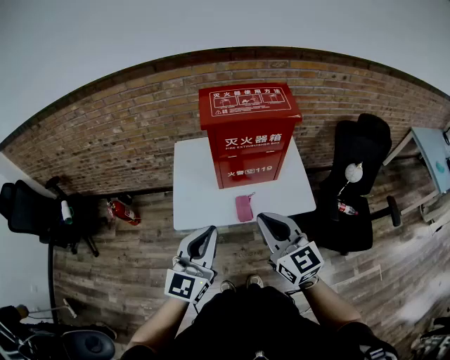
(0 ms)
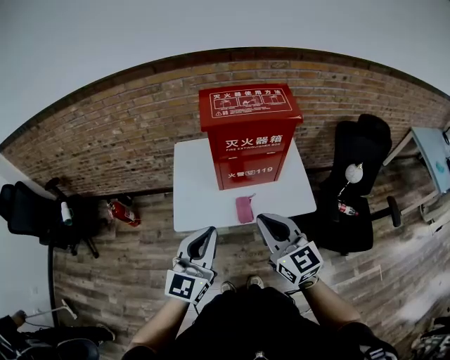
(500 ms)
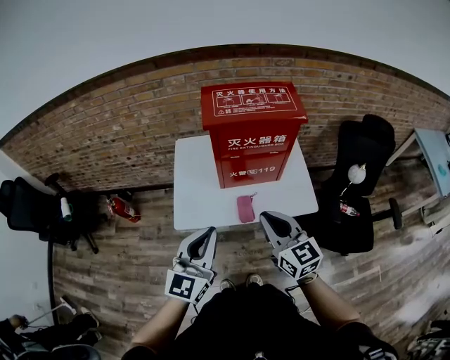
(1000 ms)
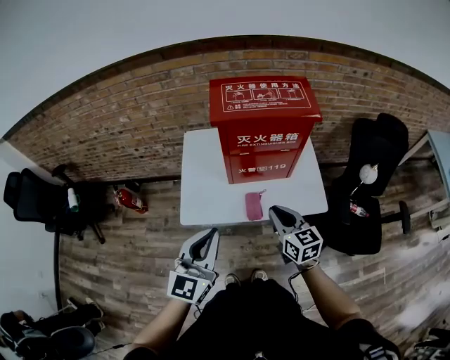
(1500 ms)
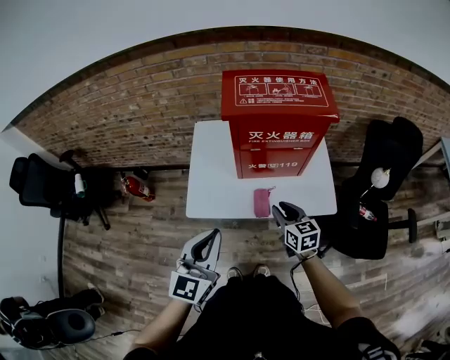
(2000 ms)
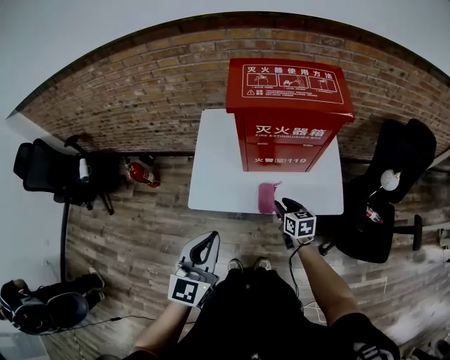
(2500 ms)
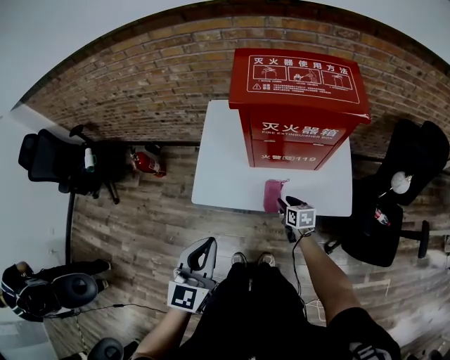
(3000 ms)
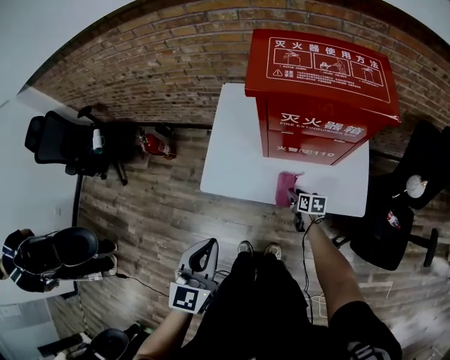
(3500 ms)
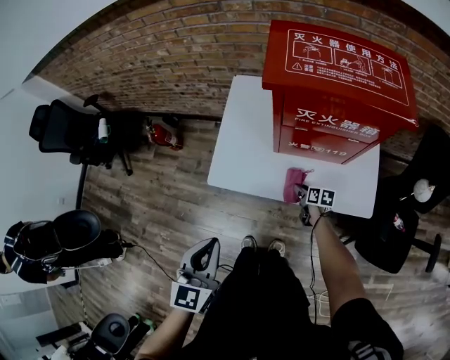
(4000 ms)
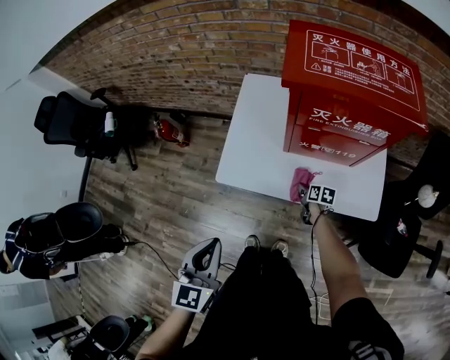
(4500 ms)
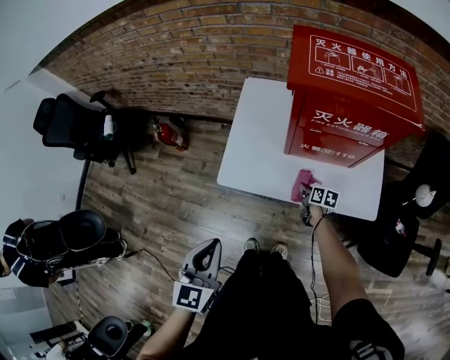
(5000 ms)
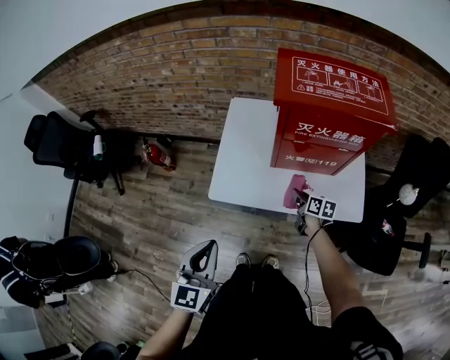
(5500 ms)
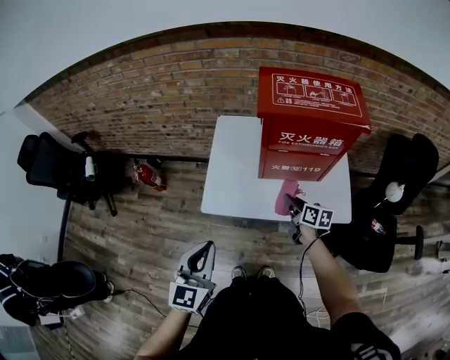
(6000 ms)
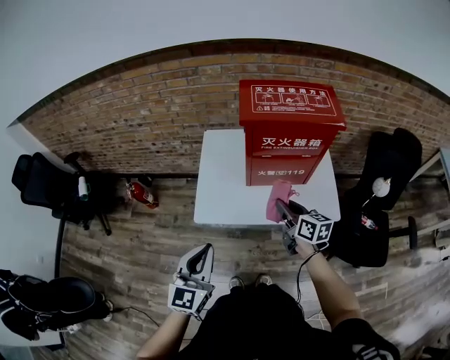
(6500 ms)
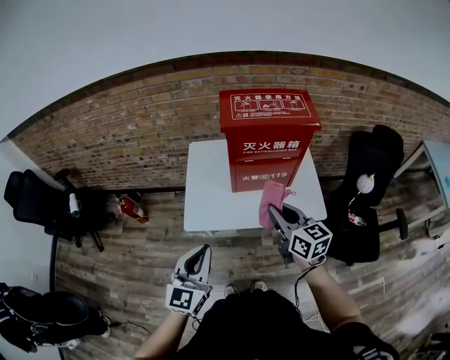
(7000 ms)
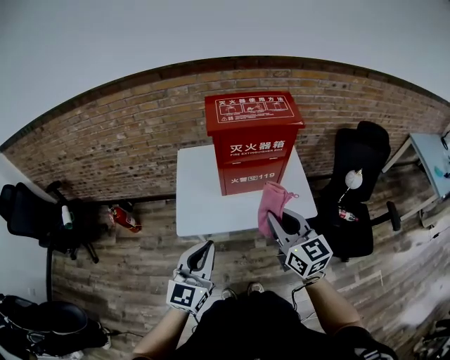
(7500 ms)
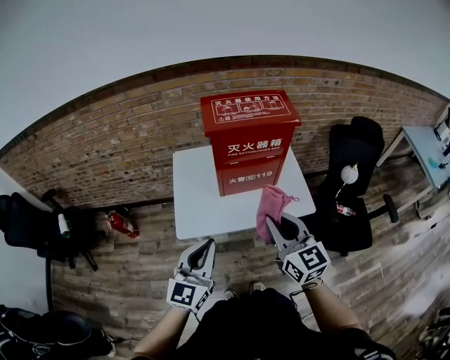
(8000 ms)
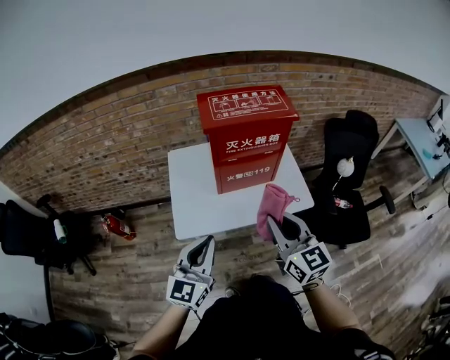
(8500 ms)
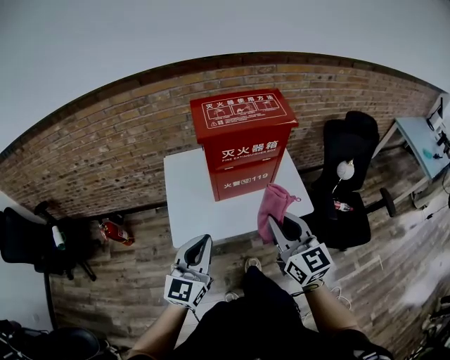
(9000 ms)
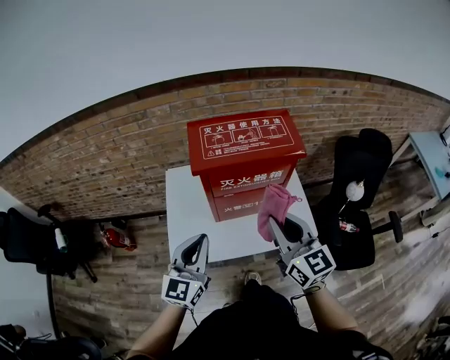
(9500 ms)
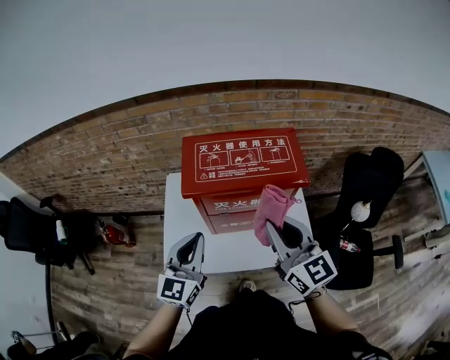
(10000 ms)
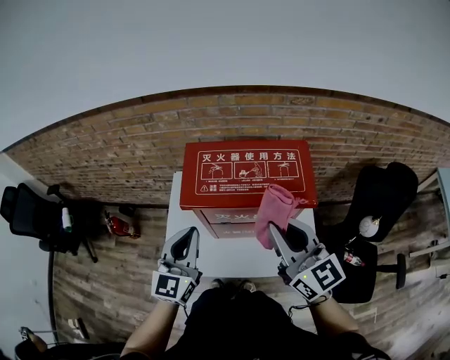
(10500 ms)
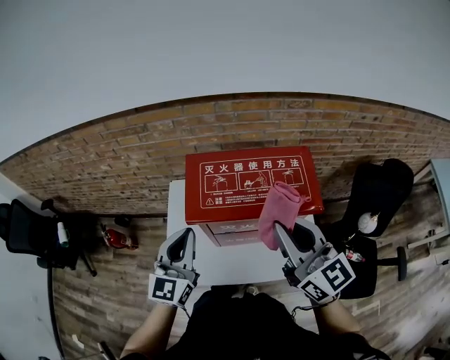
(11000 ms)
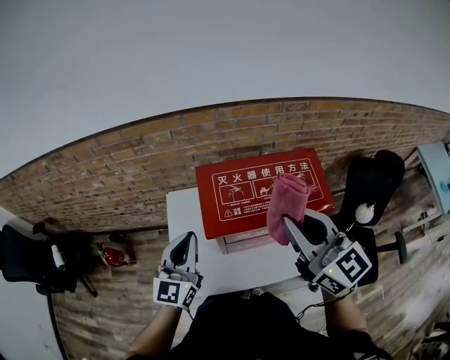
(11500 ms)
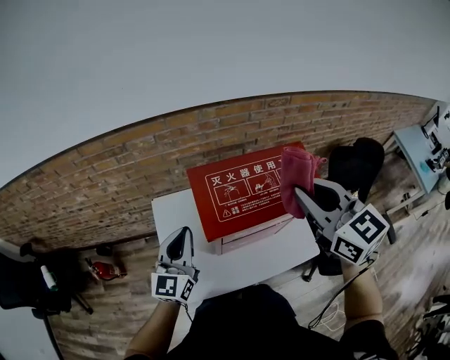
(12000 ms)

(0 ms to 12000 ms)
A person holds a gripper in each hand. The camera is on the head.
0 ms - 2000 ms: The right gripper heads downward and forward, covering about 25 cm, and changes its angle by approximately 30 degrees. Meanwhile the left gripper ends up approximately 5 cm from where it was.
2000 ms - 4000 ms: The left gripper moves downward and to the left, some 10 cm, and changes its angle by roughly 20 degrees, while the right gripper shifts some 30 cm downward, and rotates approximately 40 degrees.
4000 ms - 6000 ms: The left gripper ends up approximately 5 cm from where it was. The right gripper is displaced upward by roughly 20 cm, turns by some 20 degrees, and closes.
6000 ms - 8000 ms: The right gripper travels upward and backward by roughly 35 cm, and changes its angle by about 50 degrees, while the left gripper shifts roughly 10 cm to the right and upward, and turns by about 20 degrees.
8000 ms - 10000 ms: Both grippers travel together forward, approximately 25 cm.
10000 ms - 12000 ms: The left gripper travels forward and to the left by approximately 20 cm; the right gripper travels forward and upward by approximately 15 cm.

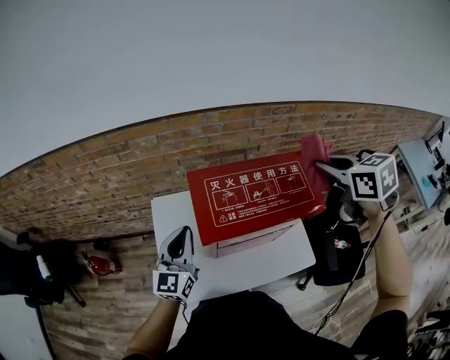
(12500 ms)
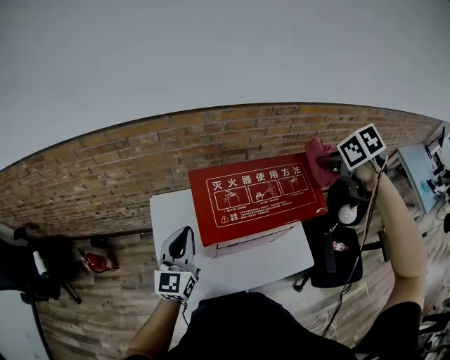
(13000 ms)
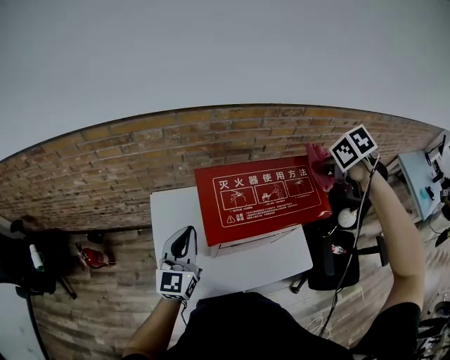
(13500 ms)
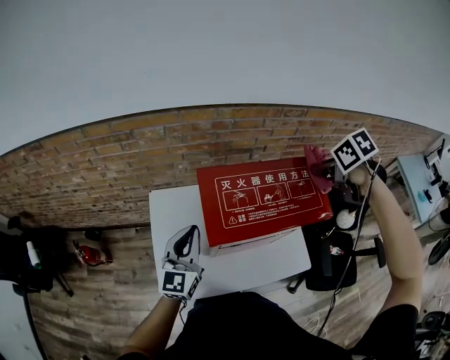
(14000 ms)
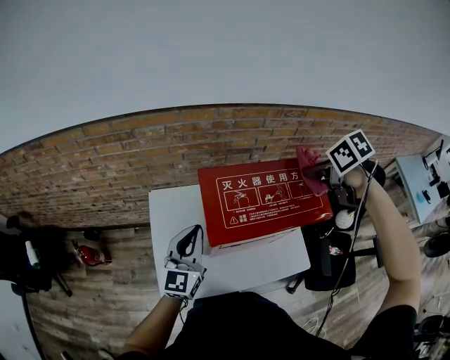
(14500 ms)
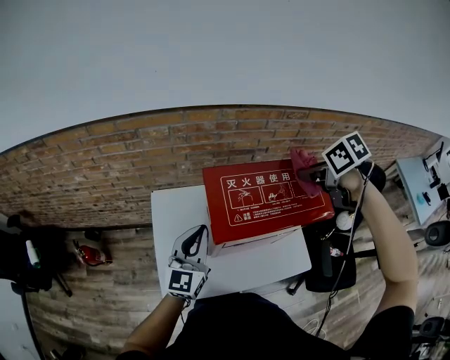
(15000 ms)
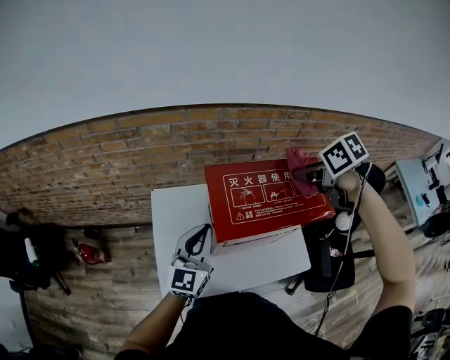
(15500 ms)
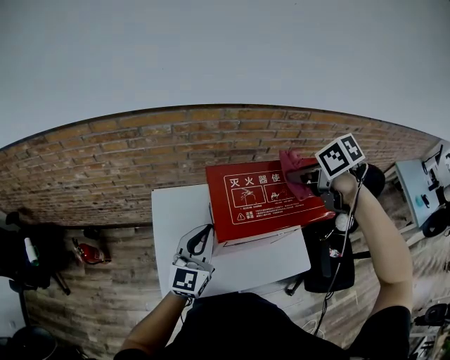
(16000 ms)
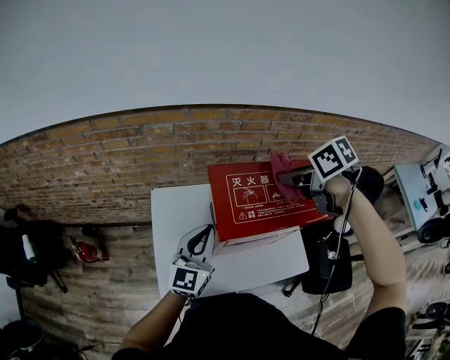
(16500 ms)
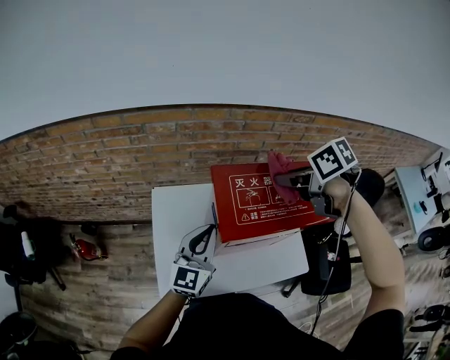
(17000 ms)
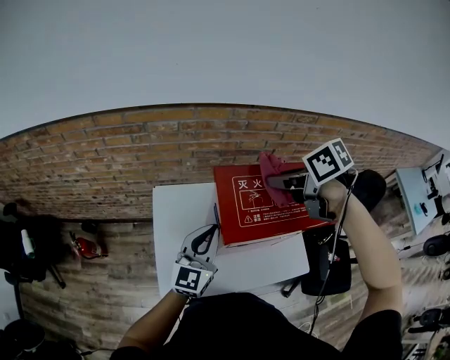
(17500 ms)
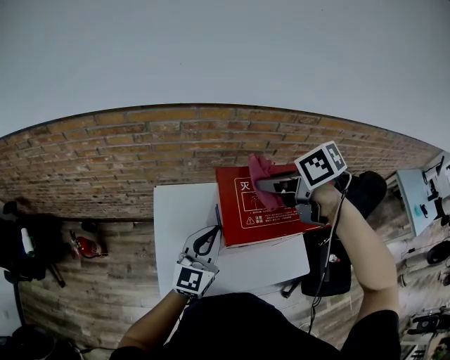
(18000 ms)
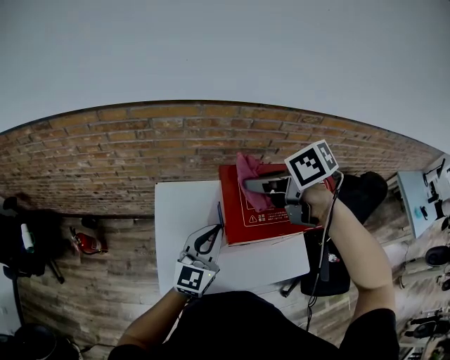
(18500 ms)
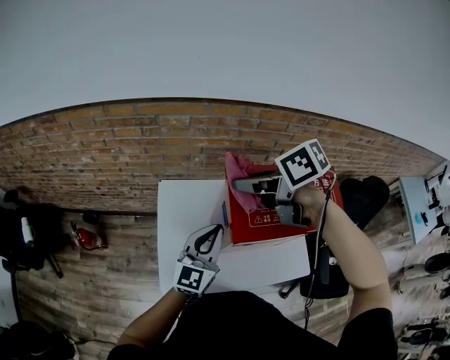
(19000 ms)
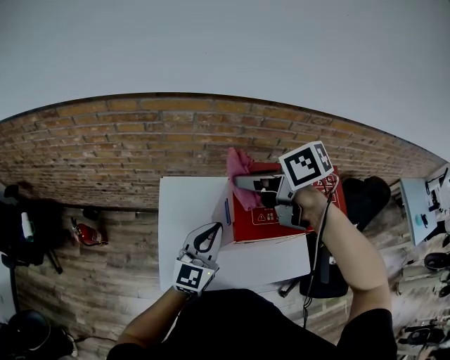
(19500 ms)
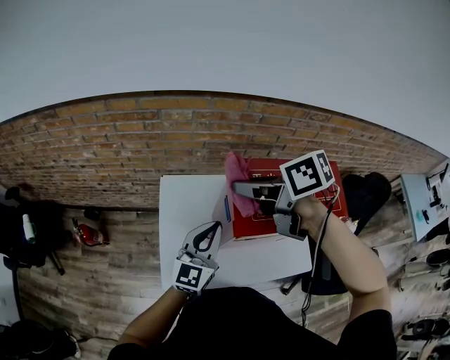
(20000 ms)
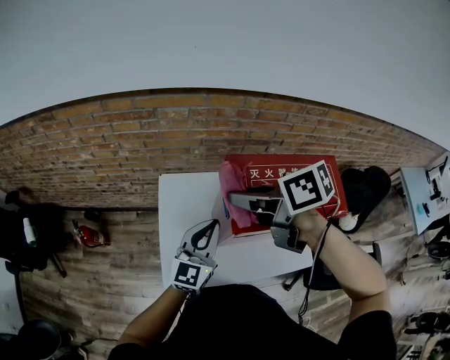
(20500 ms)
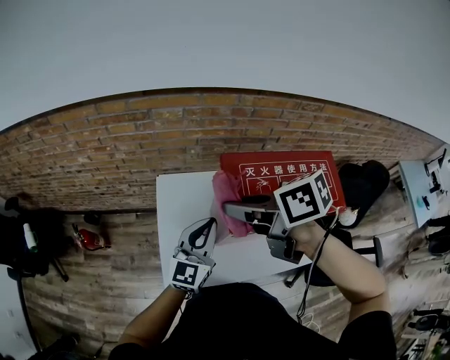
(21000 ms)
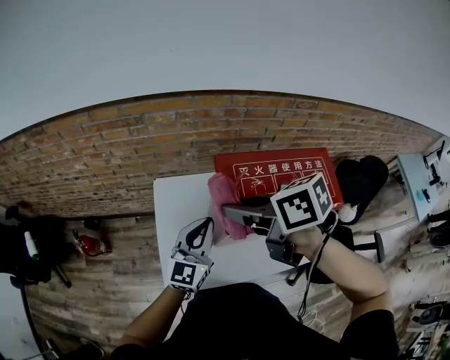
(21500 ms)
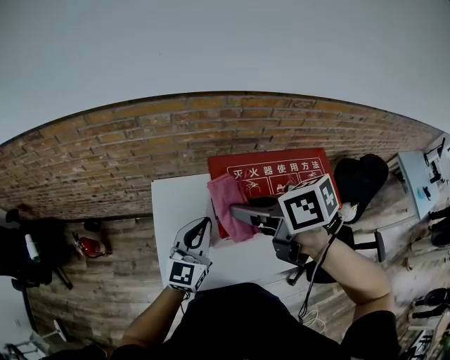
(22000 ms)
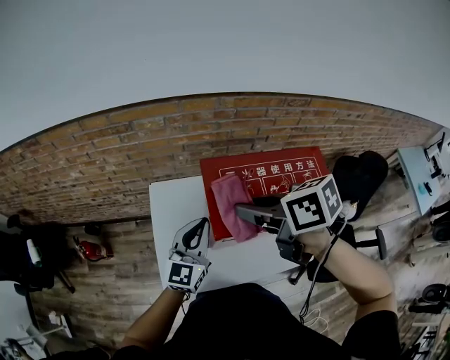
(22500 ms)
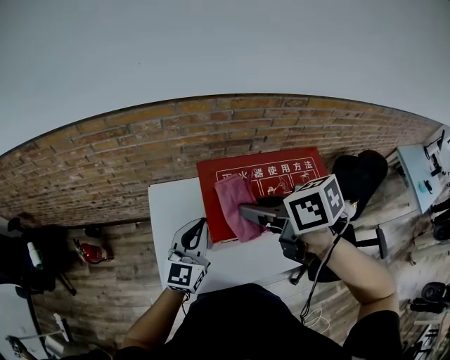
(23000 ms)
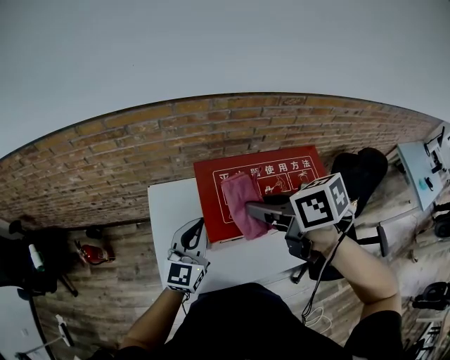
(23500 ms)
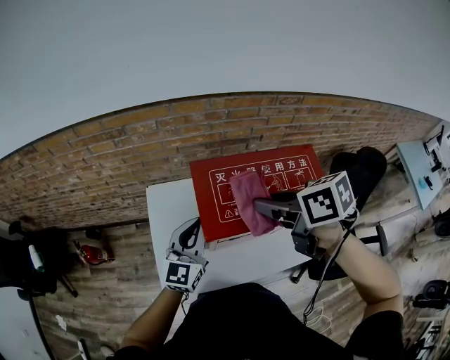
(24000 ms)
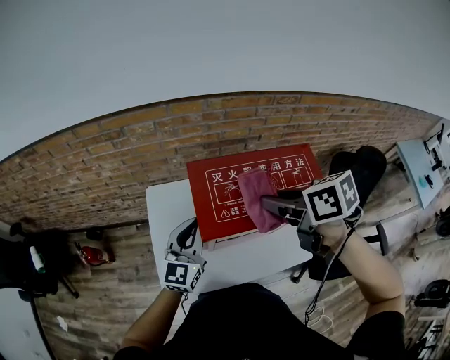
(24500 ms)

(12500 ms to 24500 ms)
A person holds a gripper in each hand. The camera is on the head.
12500 ms - 14500 ms: The right gripper shifts approximately 10 cm downward, and changes its angle by approximately 30 degrees.
14500 ms - 16500 ms: The right gripper moves to the left, about 10 cm.
16500 ms - 18500 ms: The right gripper travels to the left by some 10 cm.
18500 ms - 20500 ms: The right gripper travels to the left by approximately 10 cm.
20500 ms - 22500 ms: The right gripper goes approximately 5 cm to the right.
22500 ms - 24500 ms: The right gripper is displaced to the right by roughly 10 cm.

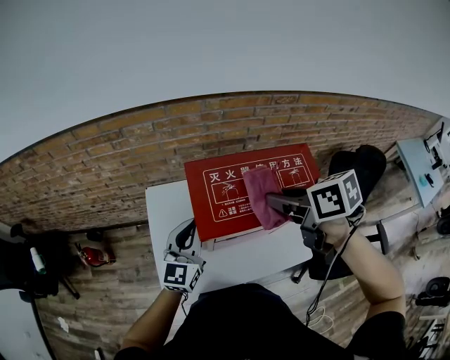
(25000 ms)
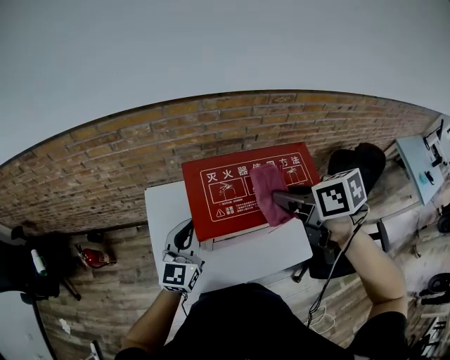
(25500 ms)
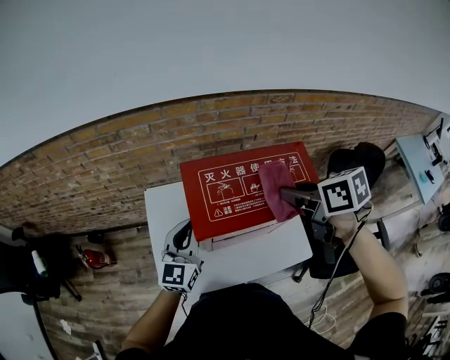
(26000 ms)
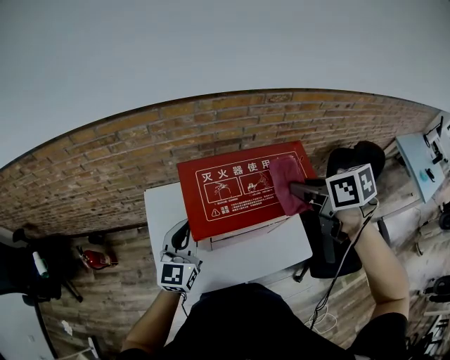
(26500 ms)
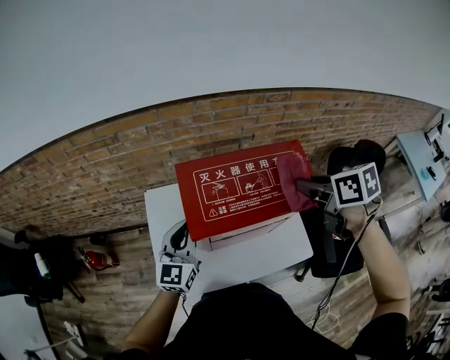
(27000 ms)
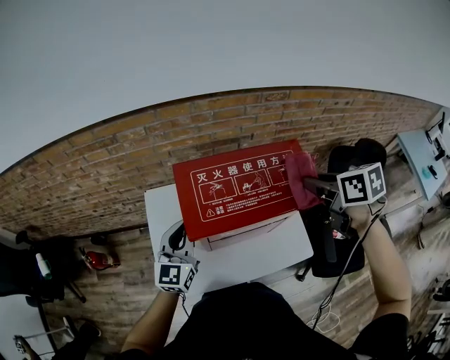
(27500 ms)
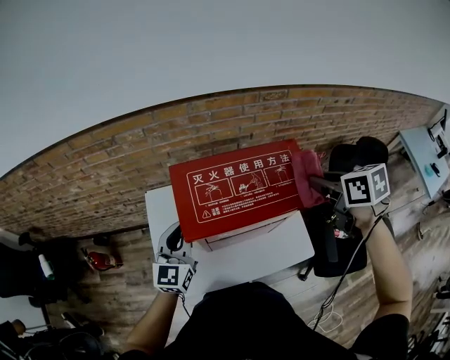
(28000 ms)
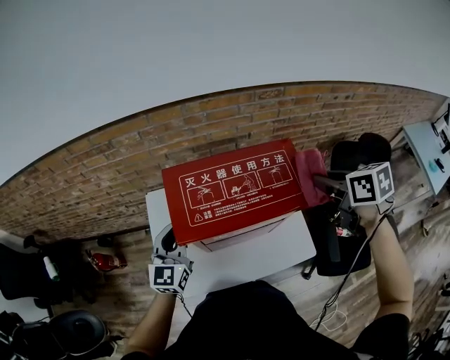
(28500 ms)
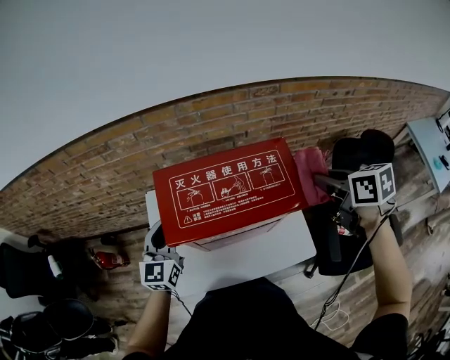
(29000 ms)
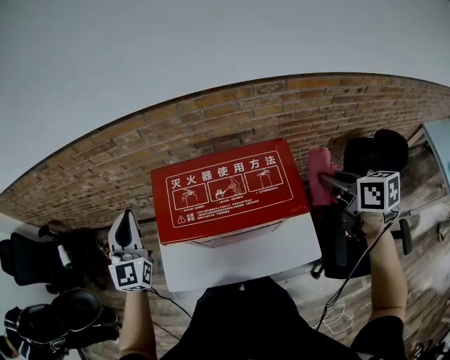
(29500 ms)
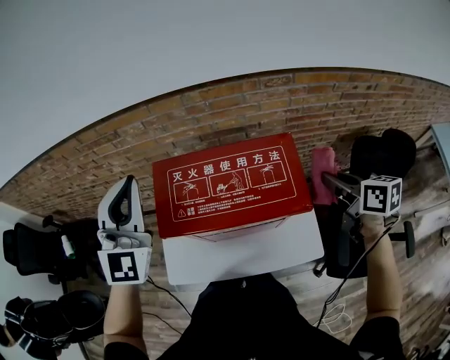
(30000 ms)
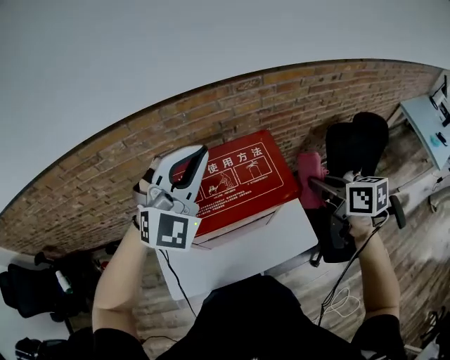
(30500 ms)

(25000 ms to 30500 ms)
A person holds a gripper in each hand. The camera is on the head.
25000 ms - 27000 ms: The right gripper goes some 10 cm to the right.
27000 ms - 28500 ms: The right gripper shifts about 10 cm to the right.
28500 ms - 30500 ms: The left gripper heads upward and to the right, covering approximately 25 cm, and rolls clockwise, seen from behind, by about 50 degrees. The right gripper shifts by about 5 cm.
